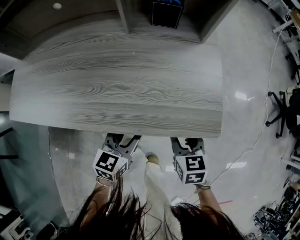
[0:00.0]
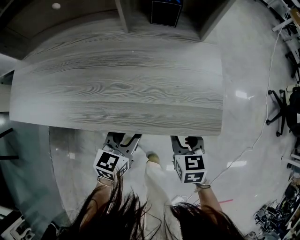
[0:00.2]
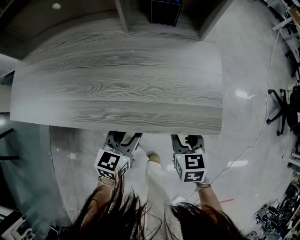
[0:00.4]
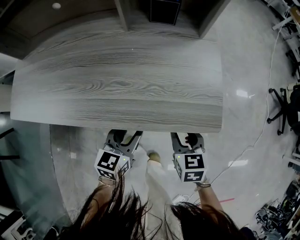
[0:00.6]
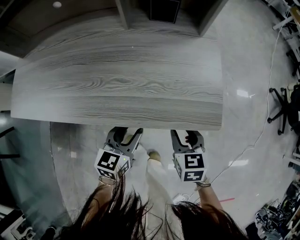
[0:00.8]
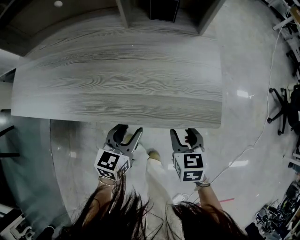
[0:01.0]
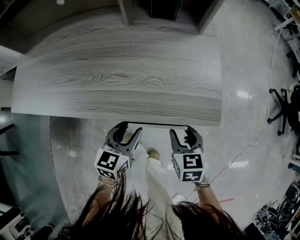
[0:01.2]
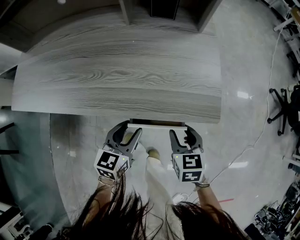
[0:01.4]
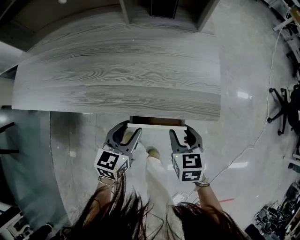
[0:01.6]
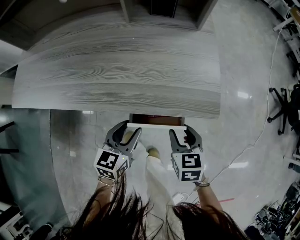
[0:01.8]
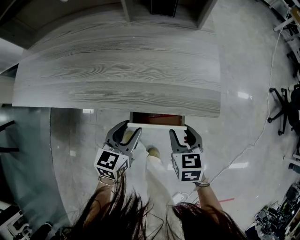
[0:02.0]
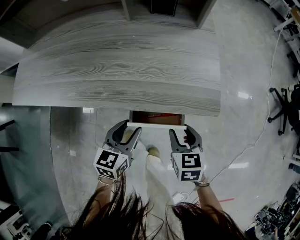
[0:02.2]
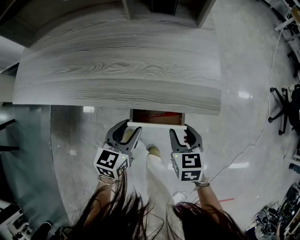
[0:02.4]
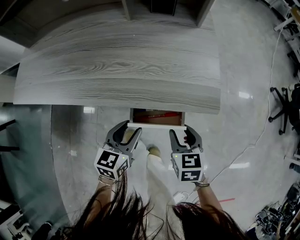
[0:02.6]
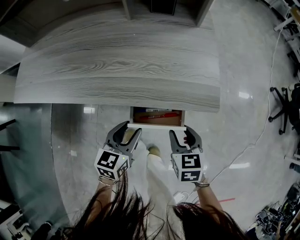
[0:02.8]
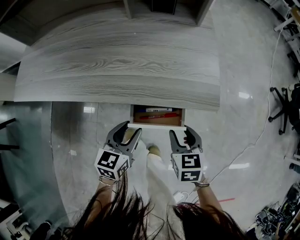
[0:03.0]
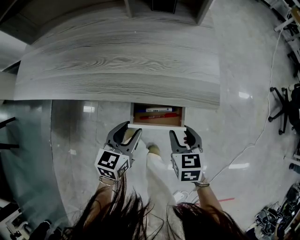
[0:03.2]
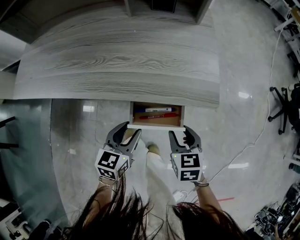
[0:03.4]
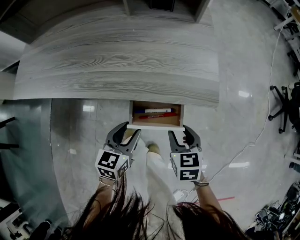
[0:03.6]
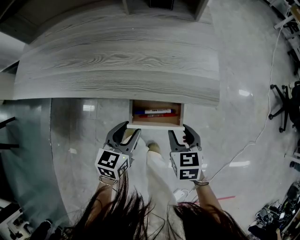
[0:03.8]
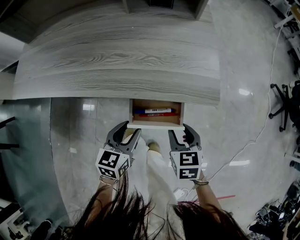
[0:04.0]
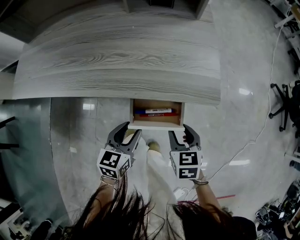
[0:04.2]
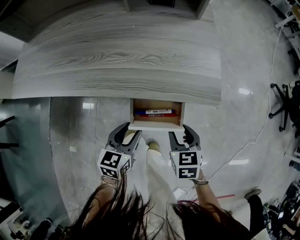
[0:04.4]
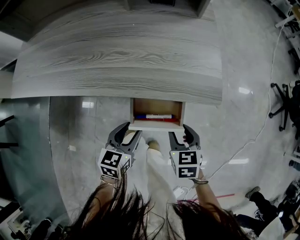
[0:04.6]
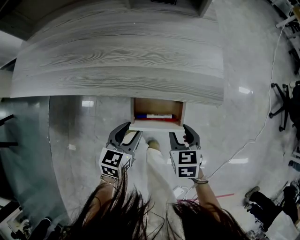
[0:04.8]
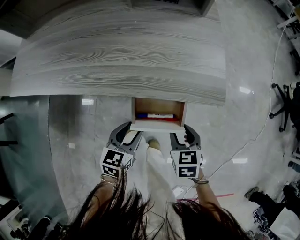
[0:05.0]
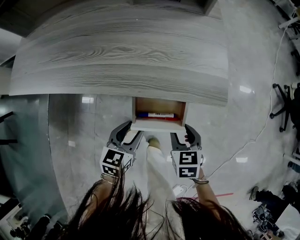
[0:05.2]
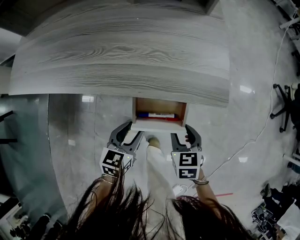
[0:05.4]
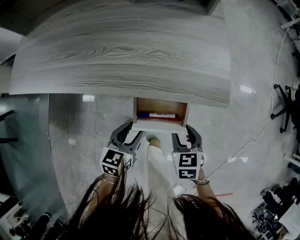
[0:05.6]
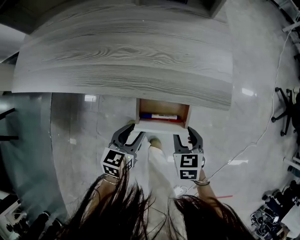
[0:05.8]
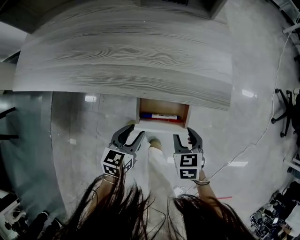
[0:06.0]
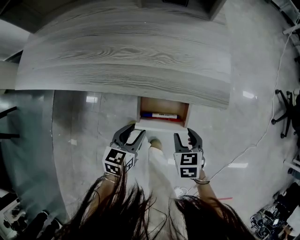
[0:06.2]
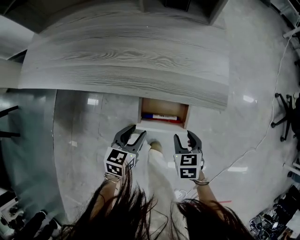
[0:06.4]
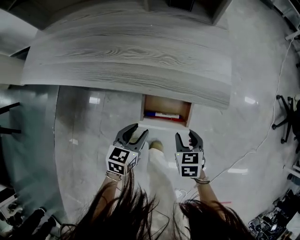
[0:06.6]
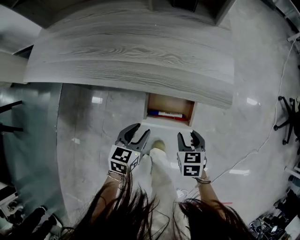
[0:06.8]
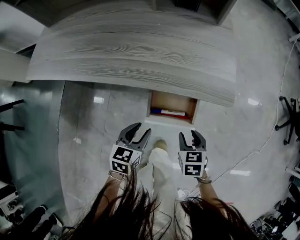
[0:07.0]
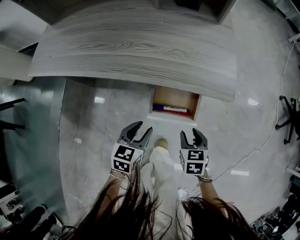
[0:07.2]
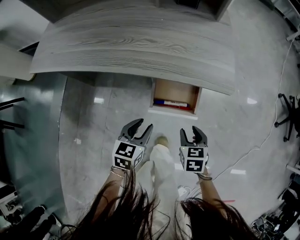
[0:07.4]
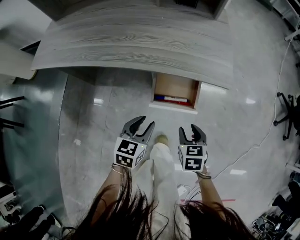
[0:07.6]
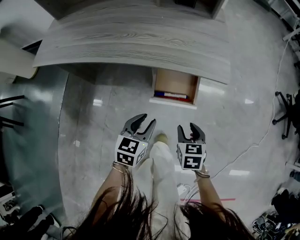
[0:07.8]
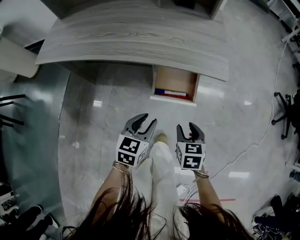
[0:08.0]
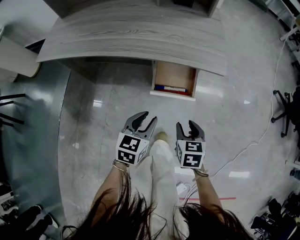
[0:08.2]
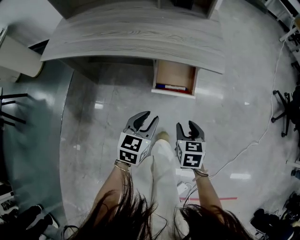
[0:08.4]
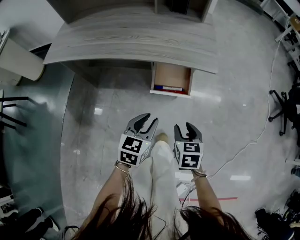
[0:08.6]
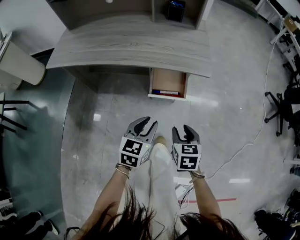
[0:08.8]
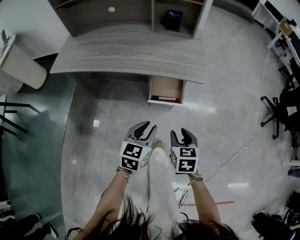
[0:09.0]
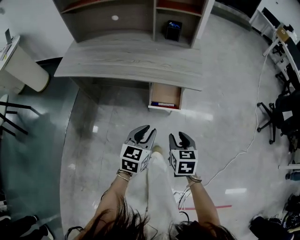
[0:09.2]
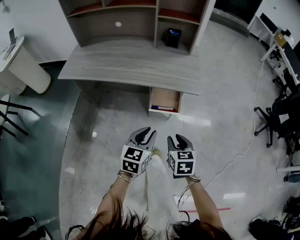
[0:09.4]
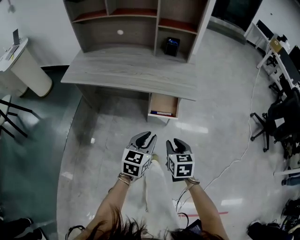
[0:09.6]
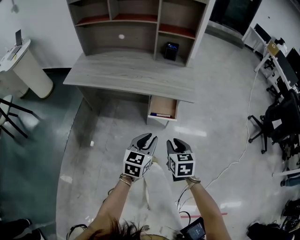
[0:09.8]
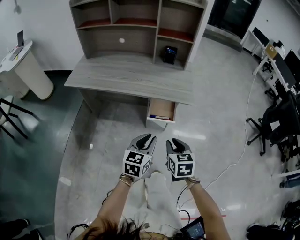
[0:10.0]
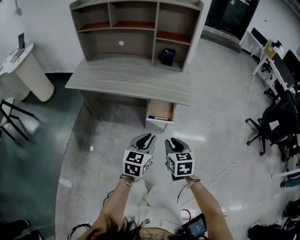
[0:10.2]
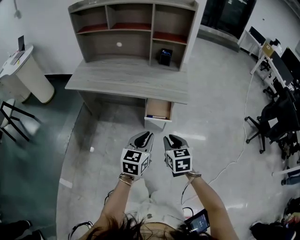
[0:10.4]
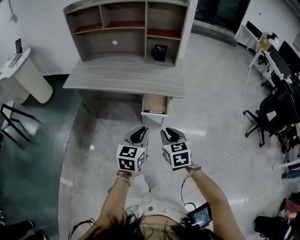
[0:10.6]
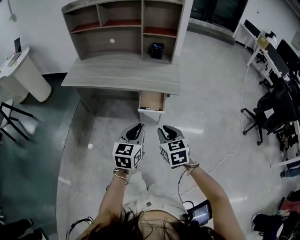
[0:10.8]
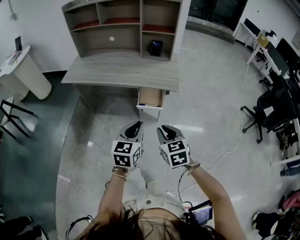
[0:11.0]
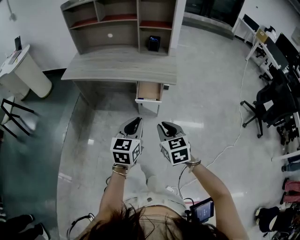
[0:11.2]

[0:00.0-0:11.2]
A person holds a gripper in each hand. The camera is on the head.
0:00.0 to 0:01.6: There are only small adjustments of the grippers.
0:01.6 to 0:03.2: The grippers stay close to where they were, moving slightly.
0:03.2 to 0:04.8: The grippers move only a little.
0:04.8 to 0:06.4: There are only small adjustments of the grippers.
0:06.4 to 0:08.0: The right gripper goes about 5 cm backward. The left gripper goes about 10 cm backward and upward.
0:08.0 to 0:09.6: Both grippers travel together upward and backward, roughly 20 cm.
0:09.6 to 0:11.2: Both grippers move upward and backward, about 15 cm.

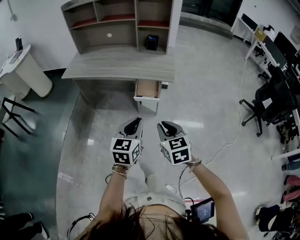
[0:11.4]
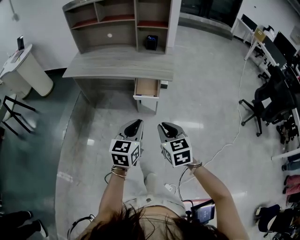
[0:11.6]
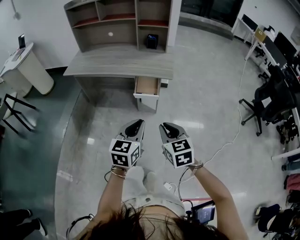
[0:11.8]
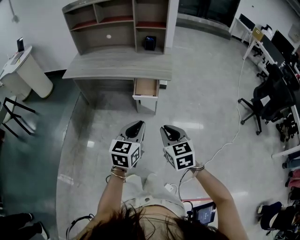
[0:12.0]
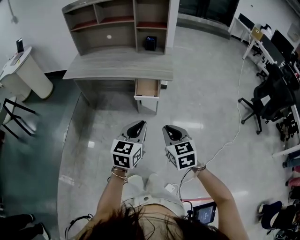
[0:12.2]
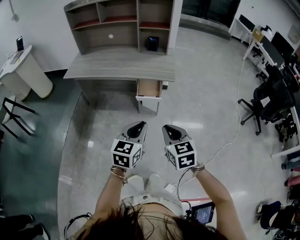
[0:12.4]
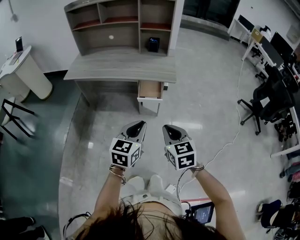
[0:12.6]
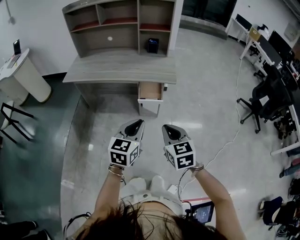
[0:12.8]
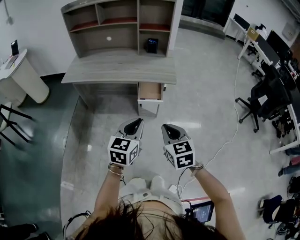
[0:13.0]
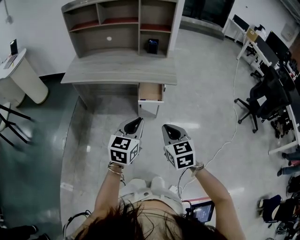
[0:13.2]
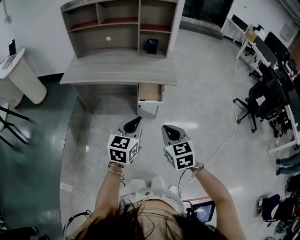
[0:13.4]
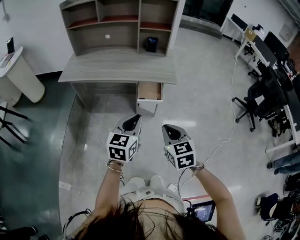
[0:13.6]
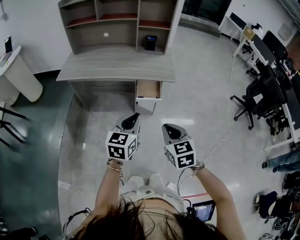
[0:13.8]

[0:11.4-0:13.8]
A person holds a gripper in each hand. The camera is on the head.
0:11.4 to 0:12.6: The grippers stay close to where they were, moving slightly.
0:12.6 to 0:13.8: The left gripper moves to the left and forward, roughly 10 cm.

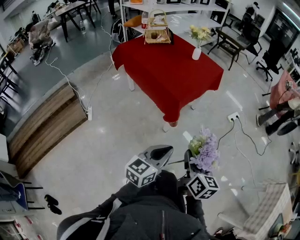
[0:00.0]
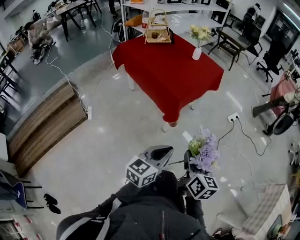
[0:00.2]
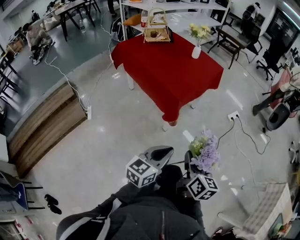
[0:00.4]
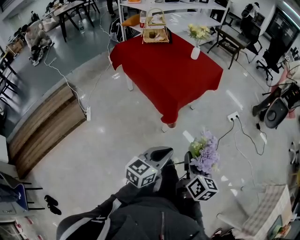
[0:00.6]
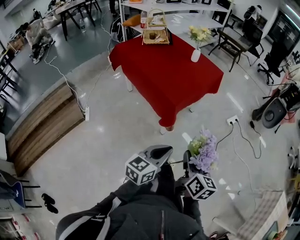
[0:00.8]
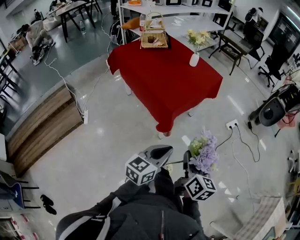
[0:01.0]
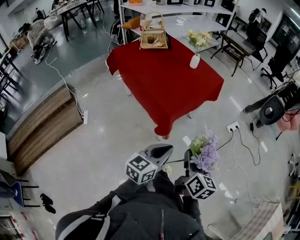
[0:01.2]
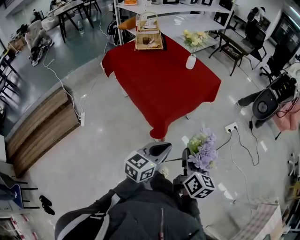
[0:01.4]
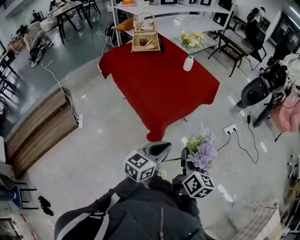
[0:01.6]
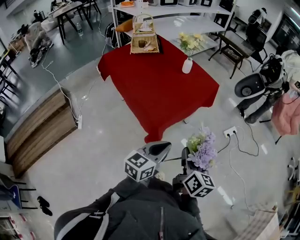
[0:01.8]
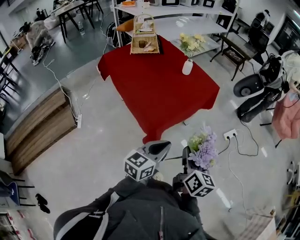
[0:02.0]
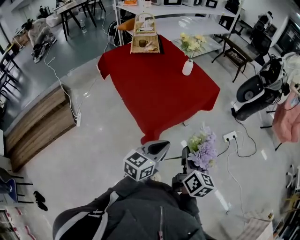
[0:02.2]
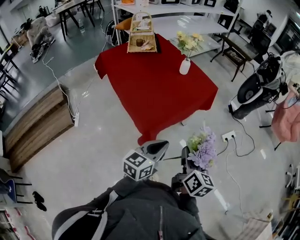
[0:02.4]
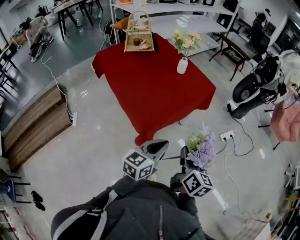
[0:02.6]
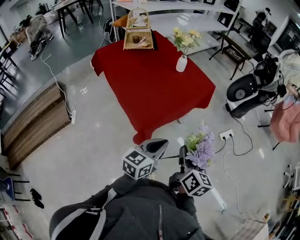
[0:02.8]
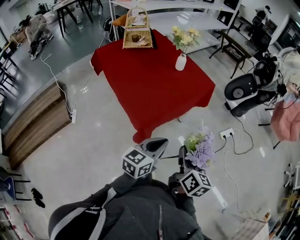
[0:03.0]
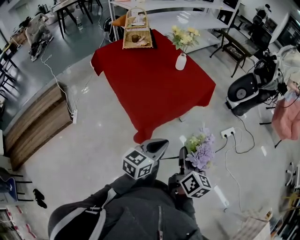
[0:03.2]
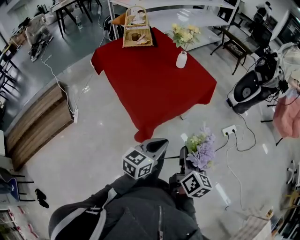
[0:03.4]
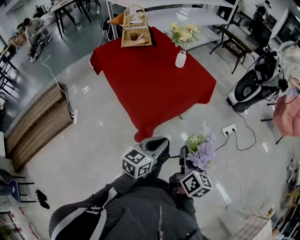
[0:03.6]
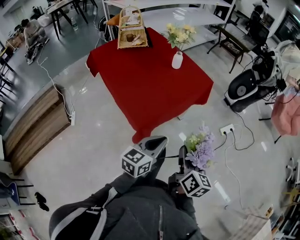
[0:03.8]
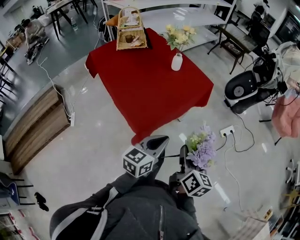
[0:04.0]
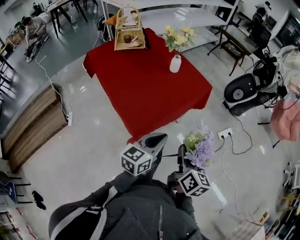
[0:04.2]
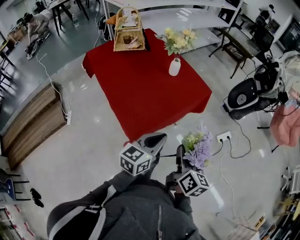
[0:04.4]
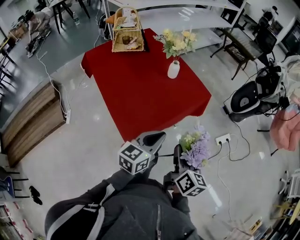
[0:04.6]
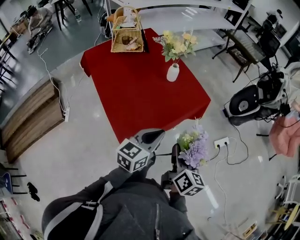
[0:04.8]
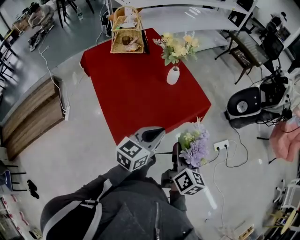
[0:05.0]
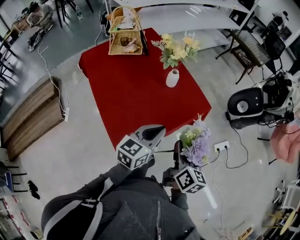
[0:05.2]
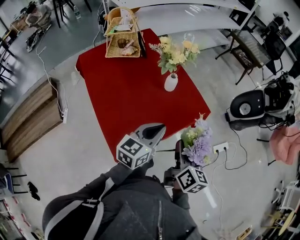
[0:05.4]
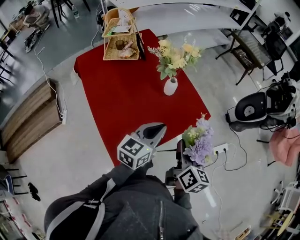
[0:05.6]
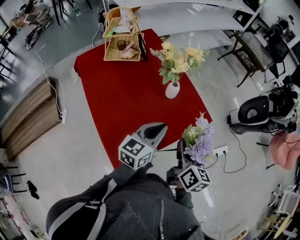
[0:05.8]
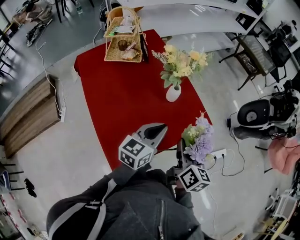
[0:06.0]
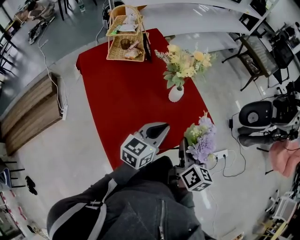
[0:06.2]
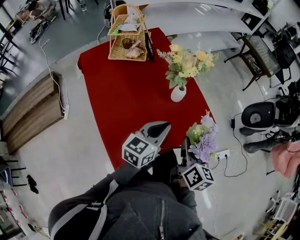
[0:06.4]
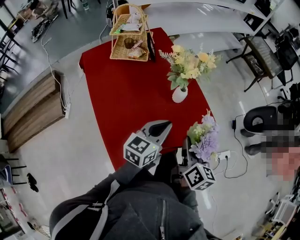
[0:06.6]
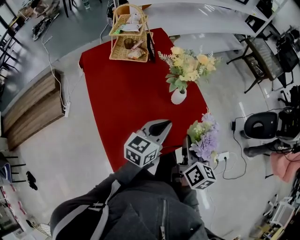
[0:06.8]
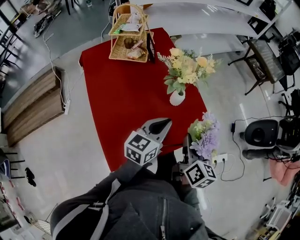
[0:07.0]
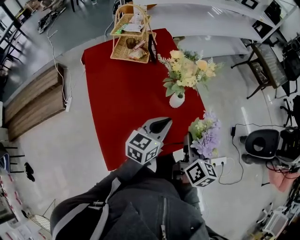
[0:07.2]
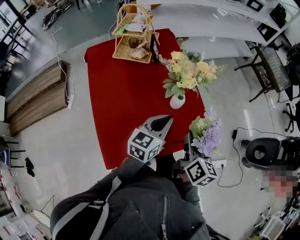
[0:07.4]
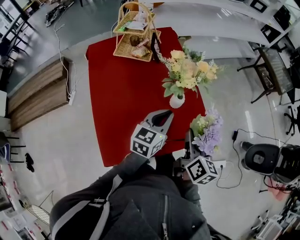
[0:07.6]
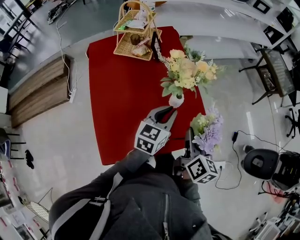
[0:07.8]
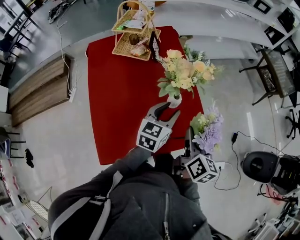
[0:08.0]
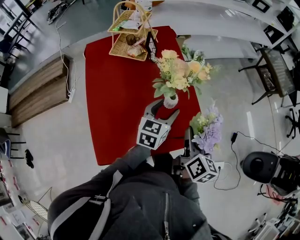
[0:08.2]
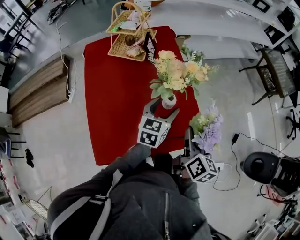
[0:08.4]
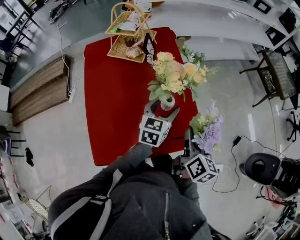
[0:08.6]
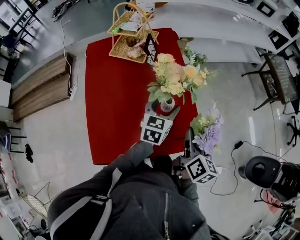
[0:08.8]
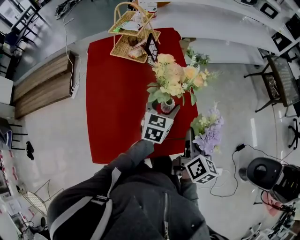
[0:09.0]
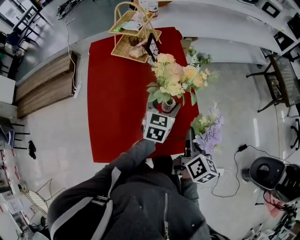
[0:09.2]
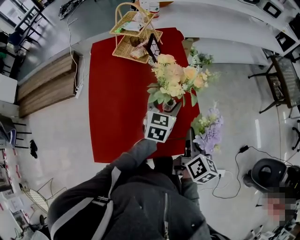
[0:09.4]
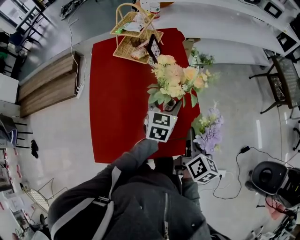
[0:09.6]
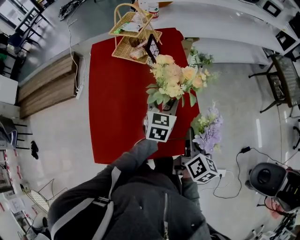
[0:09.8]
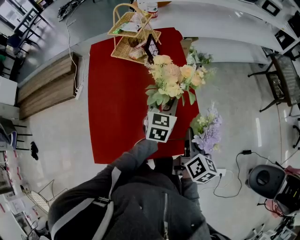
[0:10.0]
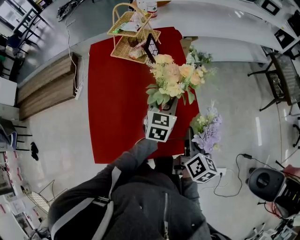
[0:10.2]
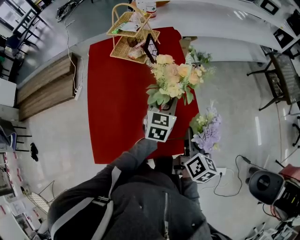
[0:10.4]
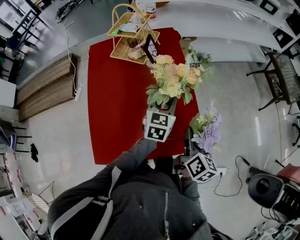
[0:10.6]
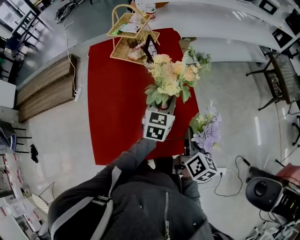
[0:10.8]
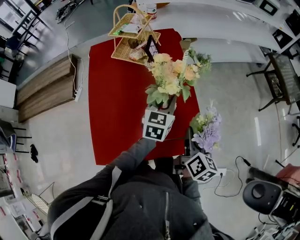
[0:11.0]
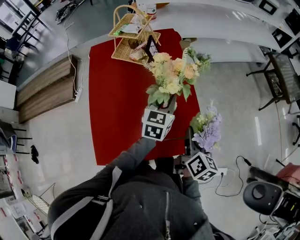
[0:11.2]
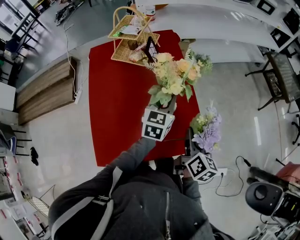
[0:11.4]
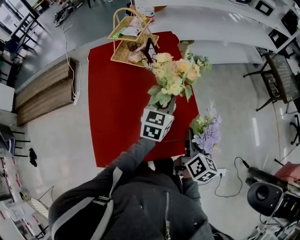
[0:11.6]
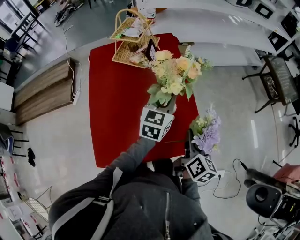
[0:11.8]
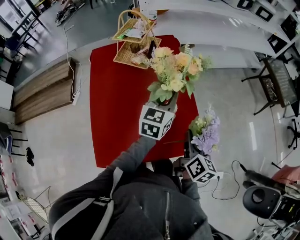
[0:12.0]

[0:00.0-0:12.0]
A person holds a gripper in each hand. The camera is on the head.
0:00.0 to 0:01.6: Both grippers travel together forward, approximately 20 cm.
0:01.6 to 0:03.0: The two grippers go some 10 cm forward and to the right.
0:03.0 to 0:04.4: The grippers both shift forward by some 10 cm.
0:04.4 to 0:06.0: Both grippers move forward, roughly 25 cm.
0:06.0 to 0:07.6: The grippers both shift forward by roughly 10 cm.
0:07.6 to 0:09.0: The right gripper heads forward and to the right, covering approximately 10 cm, while the left gripper goes about 10 cm forward, and opens up.
0:09.0 to 0:10.4: The left gripper closes up.
0:10.4 to 0:12.0: The left gripper heads upward, covering about 10 cm.
